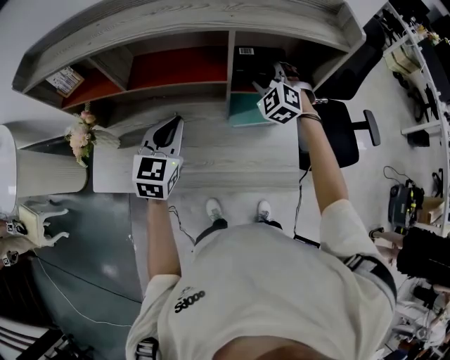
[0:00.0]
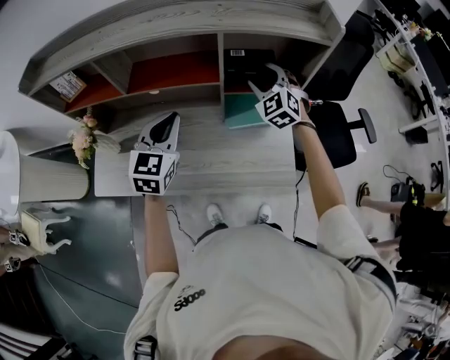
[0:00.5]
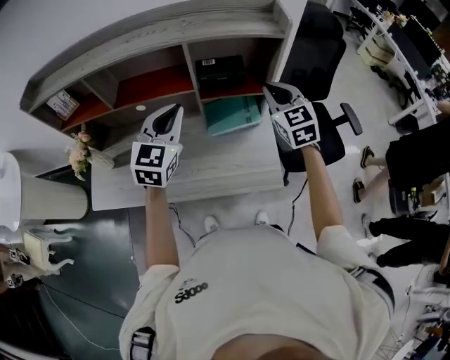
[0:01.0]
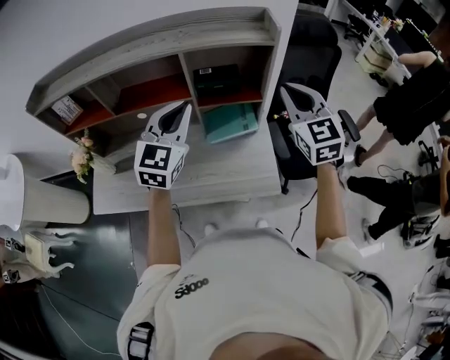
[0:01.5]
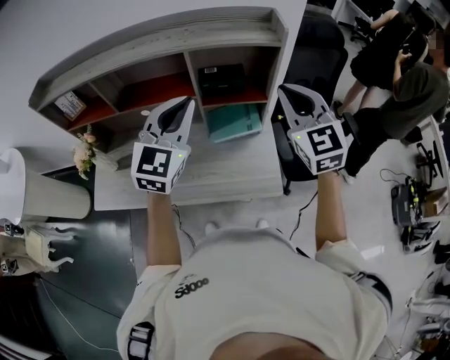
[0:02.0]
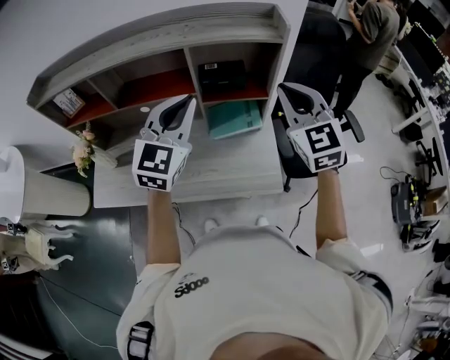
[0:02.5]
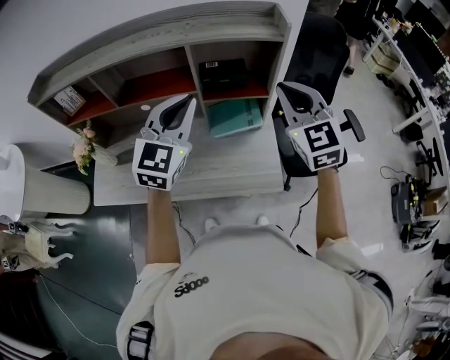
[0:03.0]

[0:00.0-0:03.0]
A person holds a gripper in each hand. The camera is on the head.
0:00.0 to 0:01.5: The left gripper travels to the right and upward by about 20 cm, and rotates approximately 20 degrees. Meanwhile the right gripper is displaced backward, upward and to the right by about 30 cm, swivels approximately 40 degrees, and closes.
0:01.5 to 0:03.0: The grippers move only a little.

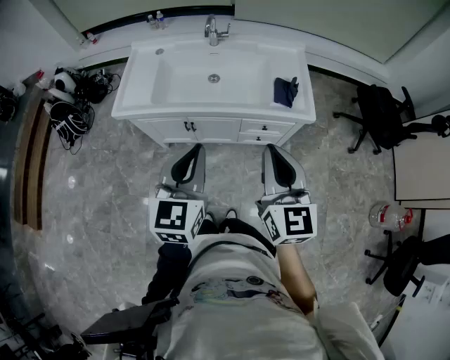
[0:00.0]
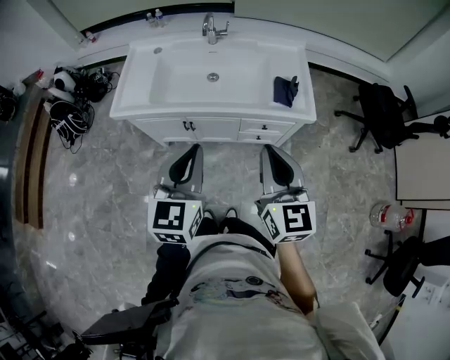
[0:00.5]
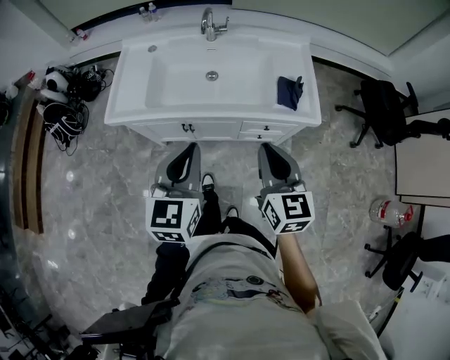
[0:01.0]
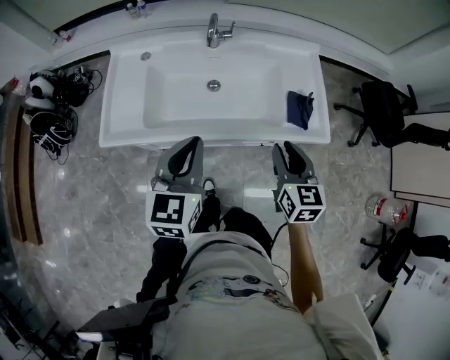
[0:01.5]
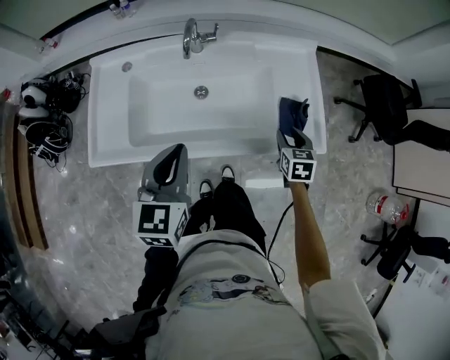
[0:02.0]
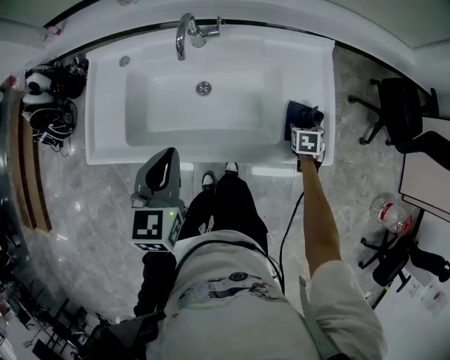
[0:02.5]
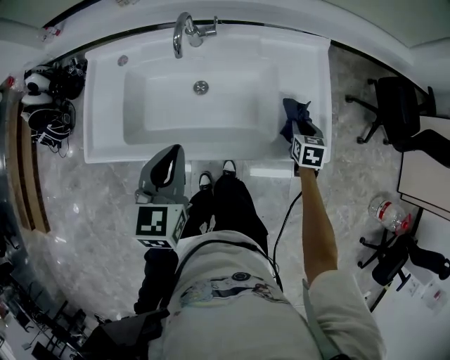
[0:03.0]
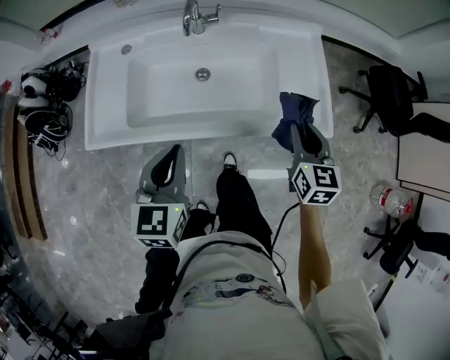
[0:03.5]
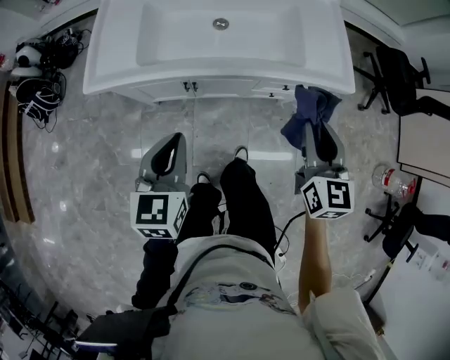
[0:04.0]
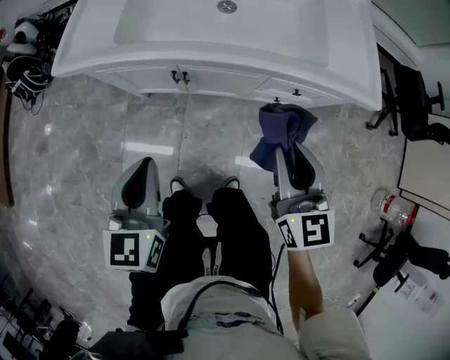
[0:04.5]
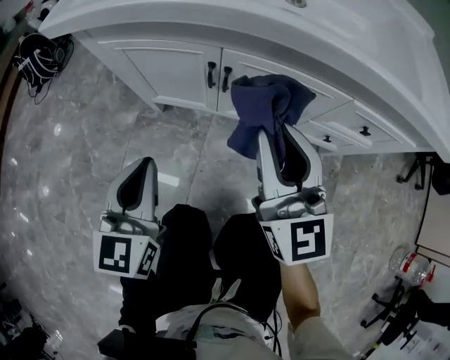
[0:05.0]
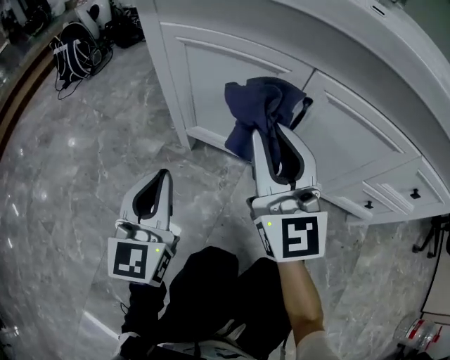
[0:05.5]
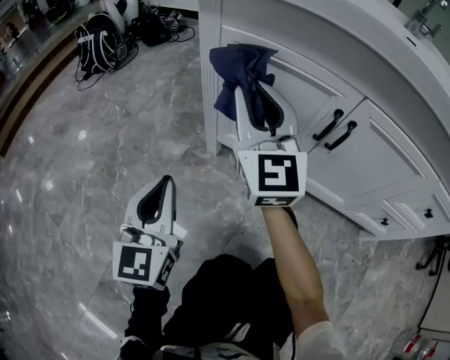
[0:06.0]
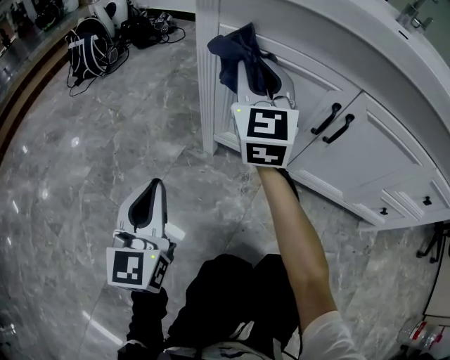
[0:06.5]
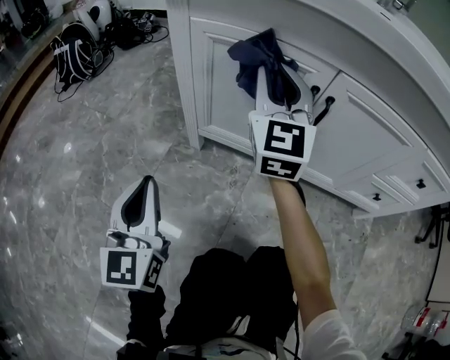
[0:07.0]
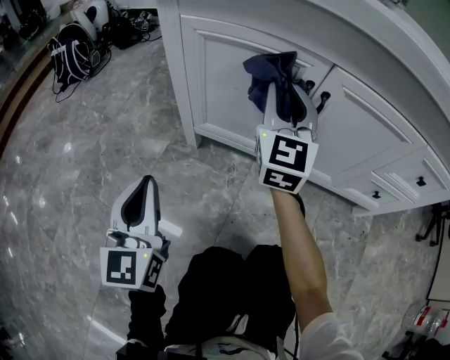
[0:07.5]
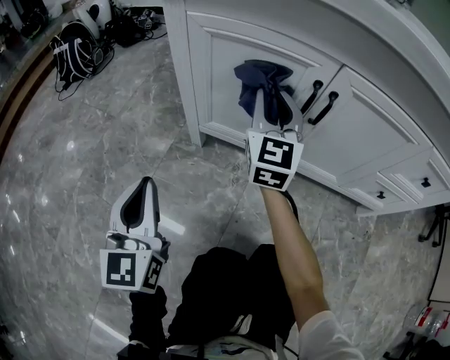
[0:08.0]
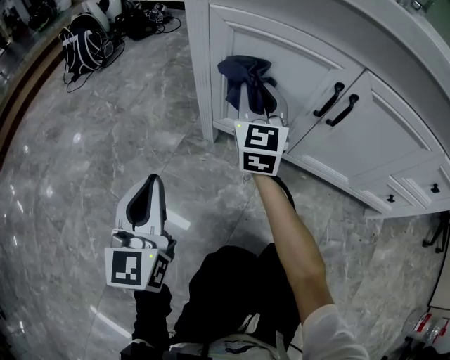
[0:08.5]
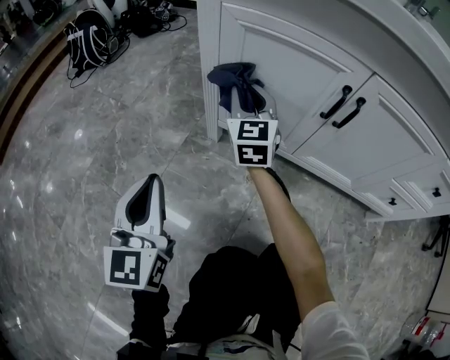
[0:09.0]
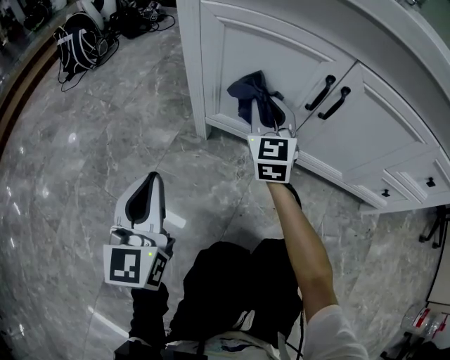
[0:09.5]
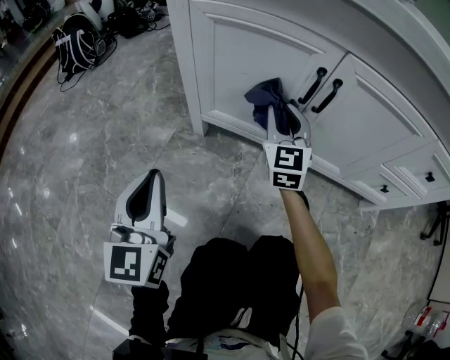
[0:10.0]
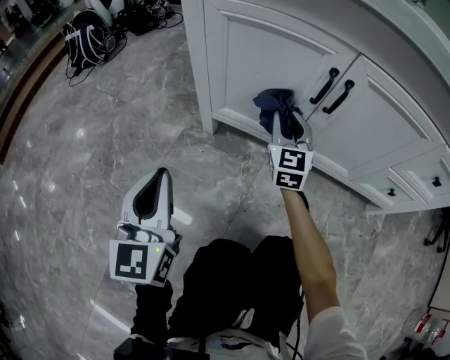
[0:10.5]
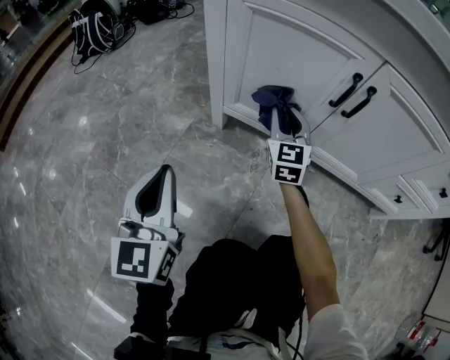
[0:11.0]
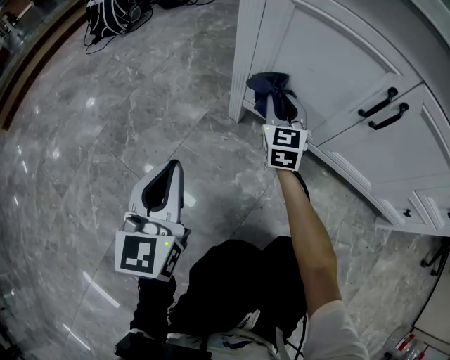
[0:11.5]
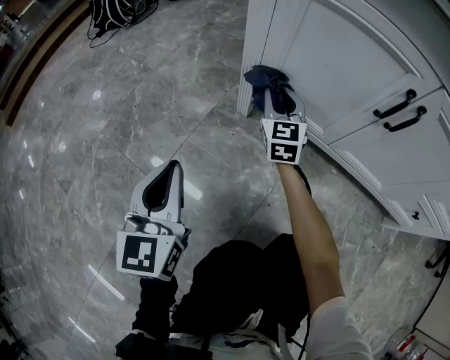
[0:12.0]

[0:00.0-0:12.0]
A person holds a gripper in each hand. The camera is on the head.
0:00.0 to 0:02.0: The left gripper goes some 25 cm forward. The right gripper is displaced forward and downward by some 40 cm, tilts its fingers approximately 40 degrees downward, and opens.
0:02.0 to 0:04.0: The right gripper goes roughly 25 cm backward and upward, changes its angle by some 30 degrees, and opens, then closes again. The left gripper moves backward and downward, about 25 cm.
0:04.0 to 0:06.0: The right gripper changes place by approximately 60 cm, and angles its fingers upward, by roughly 30 degrees. Meanwhile the left gripper goes roughly 40 cm downward, and changes its angle by about 40 degrees.
0:06.0 to 0:08.0: The right gripper heads to the right and downward, covering some 15 cm, and swivels approximately 20 degrees.
0:08.0 to 0:10.0: The right gripper shifts about 10 cm downward, and moves some 10 cm to the left and comes back.
0:10.0 to 0:12.0: The right gripper heads to the left, downward and forward, covering about 20 cm. Meanwhile the left gripper moves to the left and downward, about 10 cm.

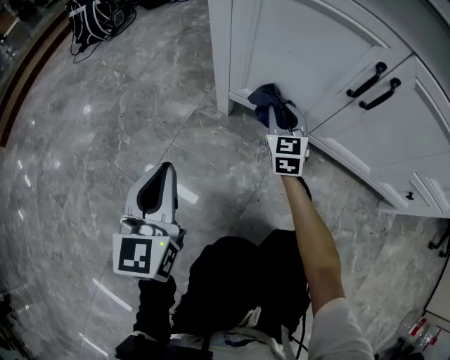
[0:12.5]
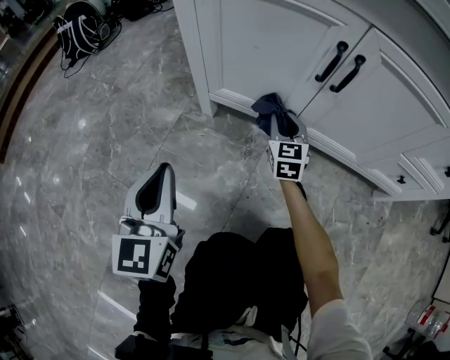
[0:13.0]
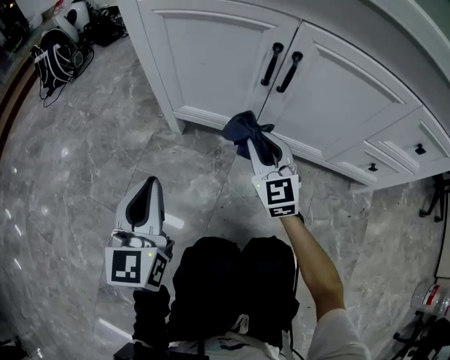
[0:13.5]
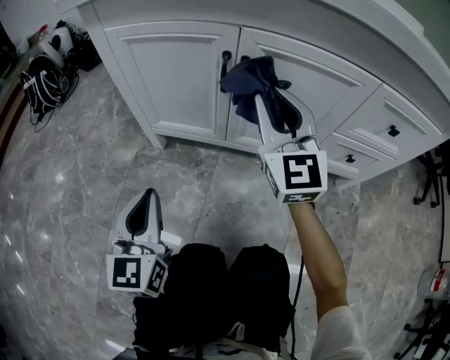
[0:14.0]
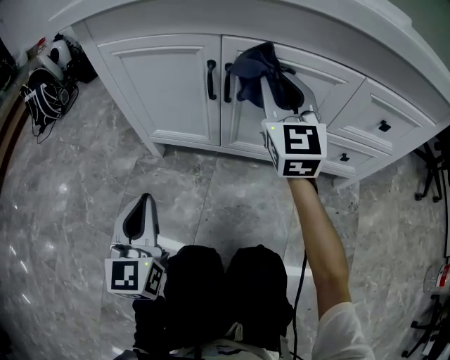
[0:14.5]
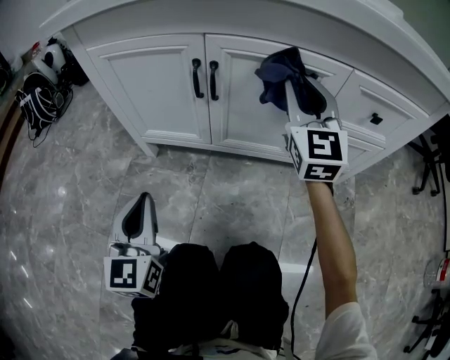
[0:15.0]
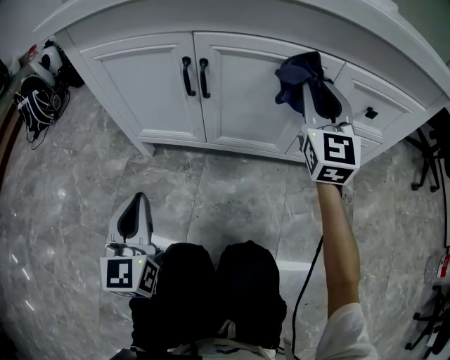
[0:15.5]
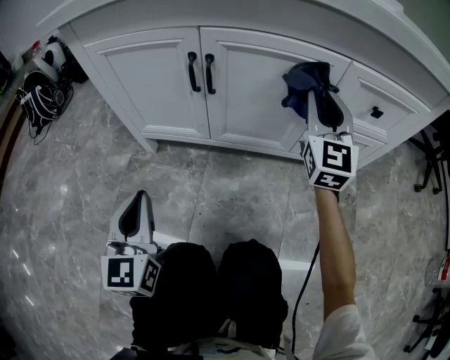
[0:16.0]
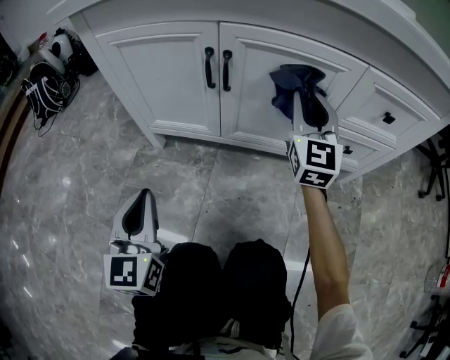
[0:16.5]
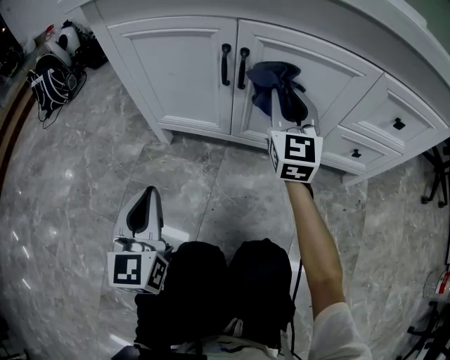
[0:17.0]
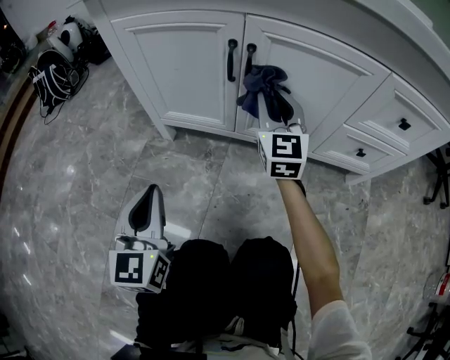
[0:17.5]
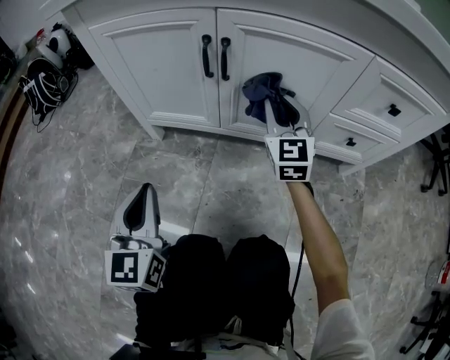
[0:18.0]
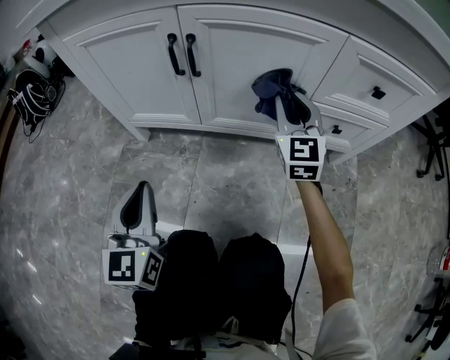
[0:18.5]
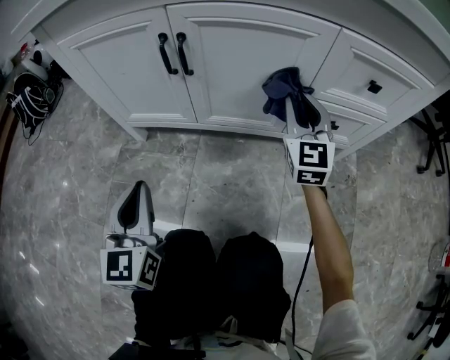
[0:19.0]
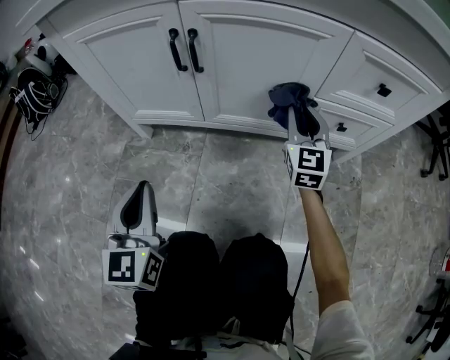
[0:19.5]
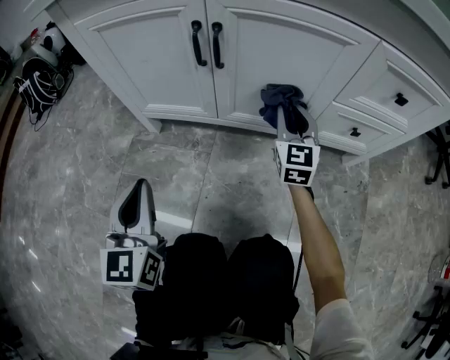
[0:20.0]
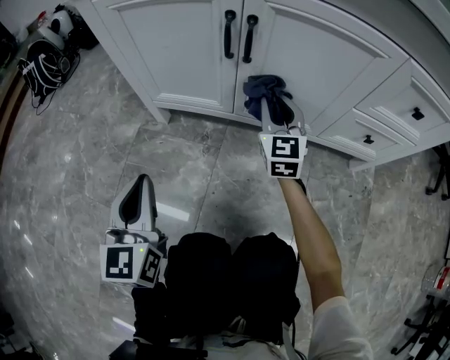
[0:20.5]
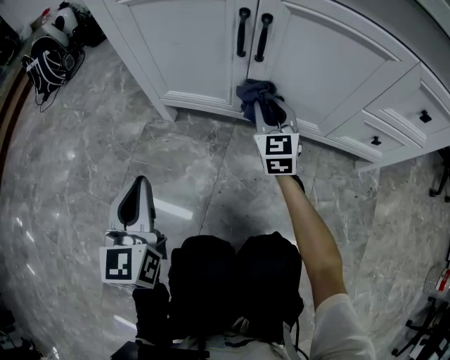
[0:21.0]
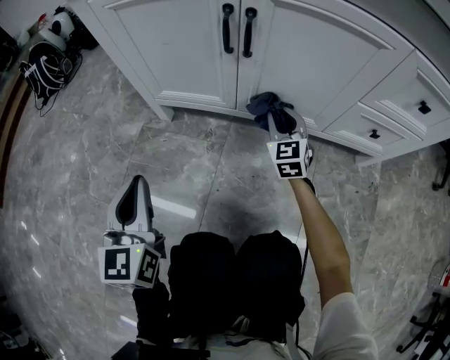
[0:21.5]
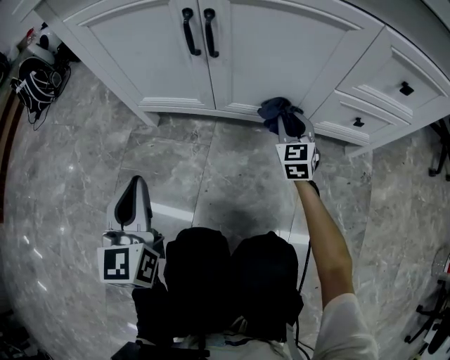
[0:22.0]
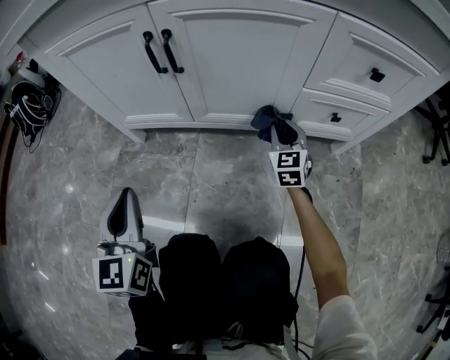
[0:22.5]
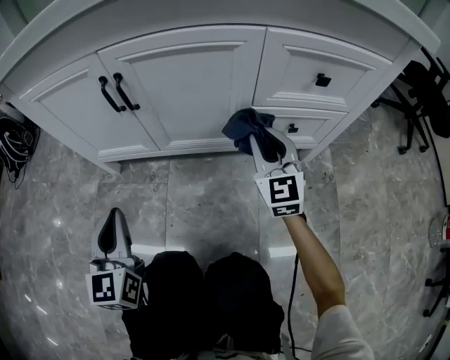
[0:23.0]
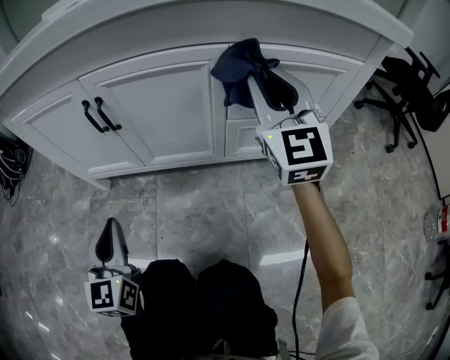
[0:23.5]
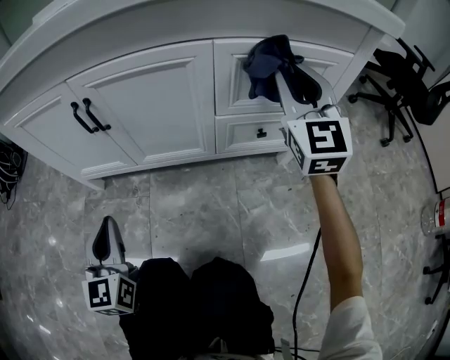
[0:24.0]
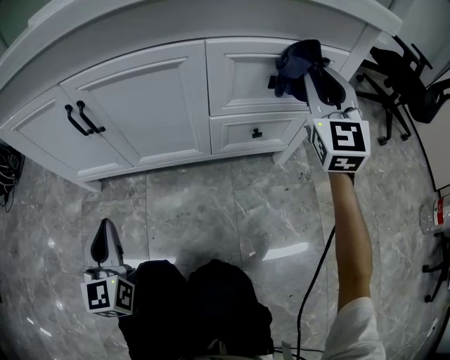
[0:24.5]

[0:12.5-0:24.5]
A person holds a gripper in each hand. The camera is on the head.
0:12.5 to 0:14.5: The left gripper moves to the right, roughly 15 cm. The right gripper heads upward and to the right, covering some 35 cm, and turns by roughly 30 degrees.
0:14.5 to 0:16.5: The right gripper moves to the right and downward, approximately 10 cm.
0:16.5 to 0:18.5: The right gripper travels downward by some 10 cm, and moves roughly 10 cm to the left and comes back.
0:18.5 to 0:20.5: The right gripper heads to the left and downward, covering some 15 cm, while the left gripper travels to the left by approximately 5 cm.
0:20.5 to 0:22.5: The right gripper is displaced to the right and downward by some 20 cm. The left gripper heads to the right, covering about 5 cm.
0:22.5 to 0:24.5: The right gripper goes about 40 cm upward and to the right, and turns by about 30 degrees; the left gripper shifts roughly 10 cm to the right.
